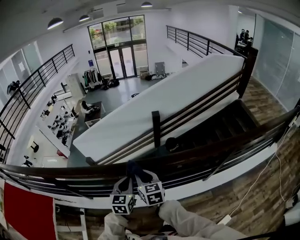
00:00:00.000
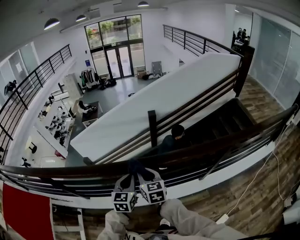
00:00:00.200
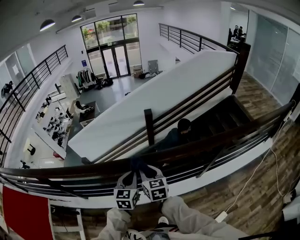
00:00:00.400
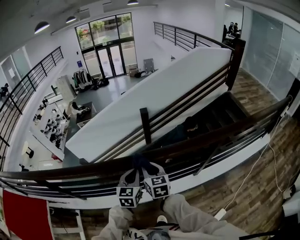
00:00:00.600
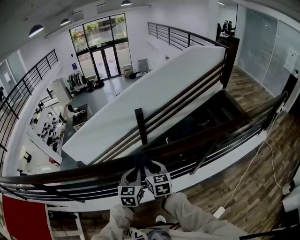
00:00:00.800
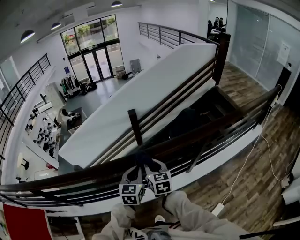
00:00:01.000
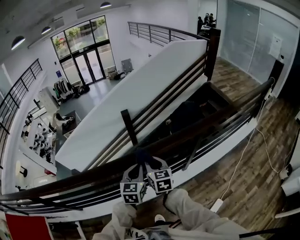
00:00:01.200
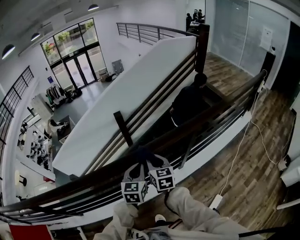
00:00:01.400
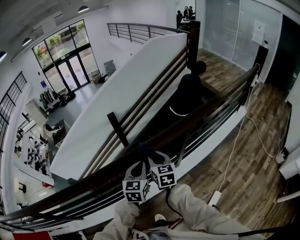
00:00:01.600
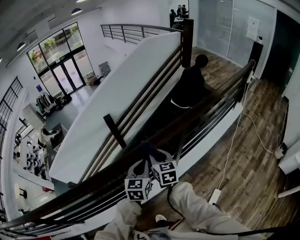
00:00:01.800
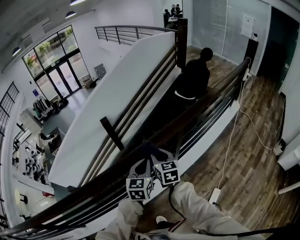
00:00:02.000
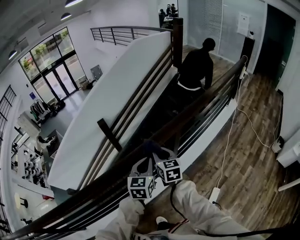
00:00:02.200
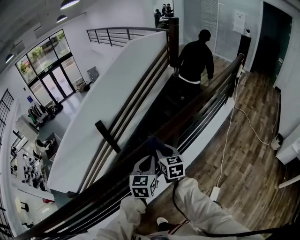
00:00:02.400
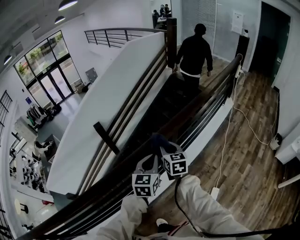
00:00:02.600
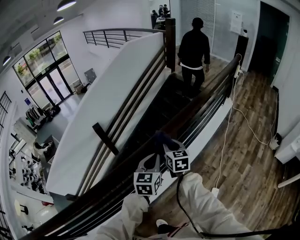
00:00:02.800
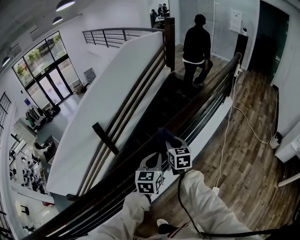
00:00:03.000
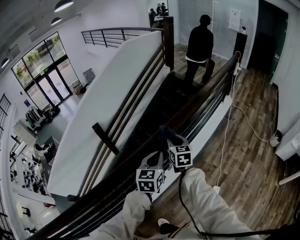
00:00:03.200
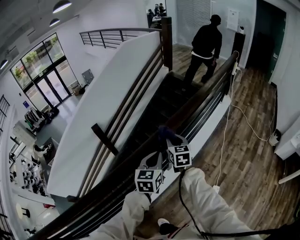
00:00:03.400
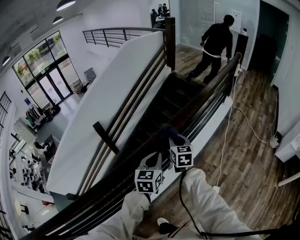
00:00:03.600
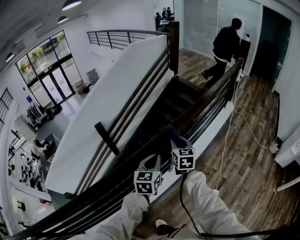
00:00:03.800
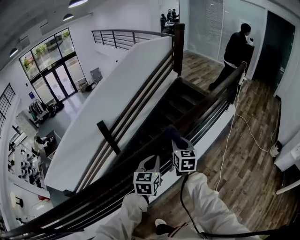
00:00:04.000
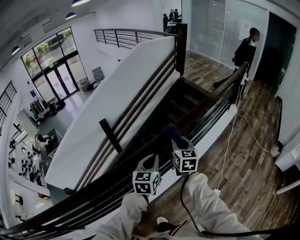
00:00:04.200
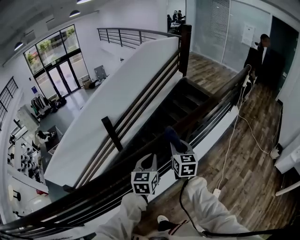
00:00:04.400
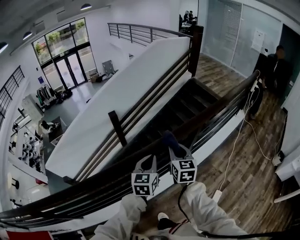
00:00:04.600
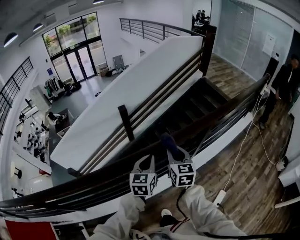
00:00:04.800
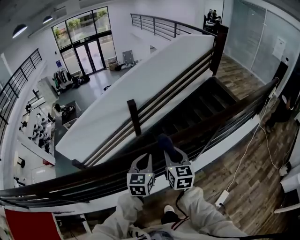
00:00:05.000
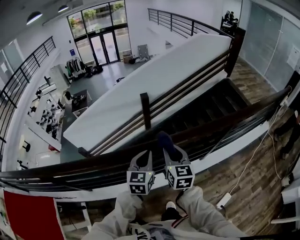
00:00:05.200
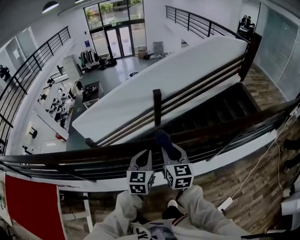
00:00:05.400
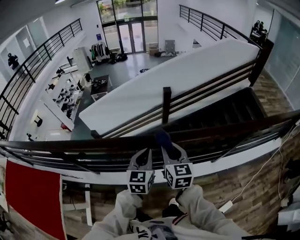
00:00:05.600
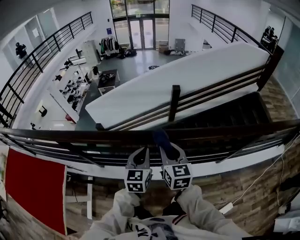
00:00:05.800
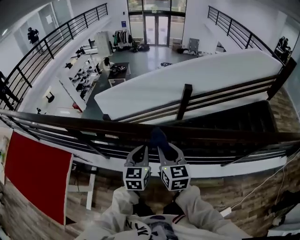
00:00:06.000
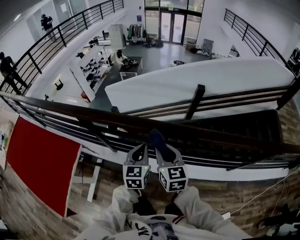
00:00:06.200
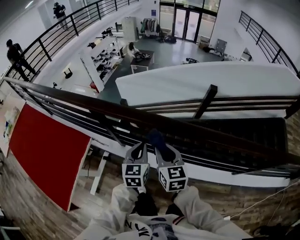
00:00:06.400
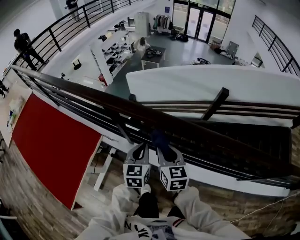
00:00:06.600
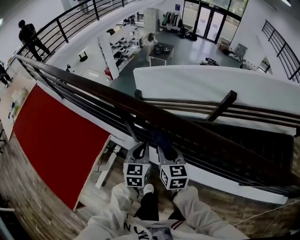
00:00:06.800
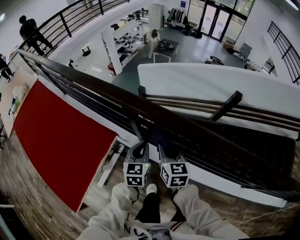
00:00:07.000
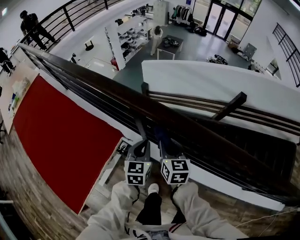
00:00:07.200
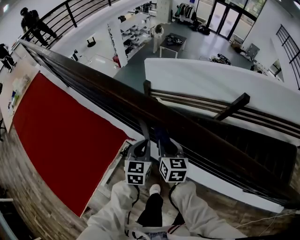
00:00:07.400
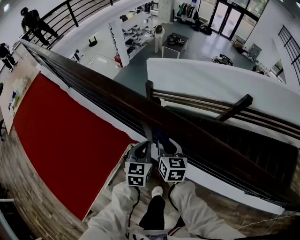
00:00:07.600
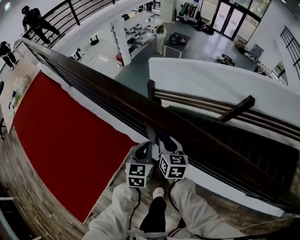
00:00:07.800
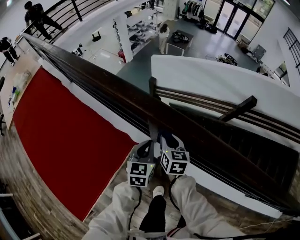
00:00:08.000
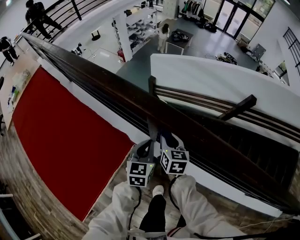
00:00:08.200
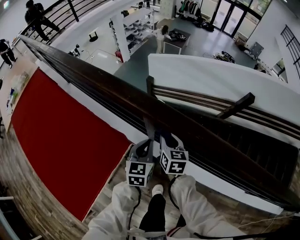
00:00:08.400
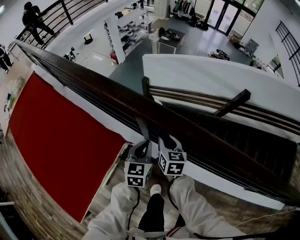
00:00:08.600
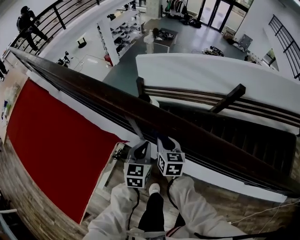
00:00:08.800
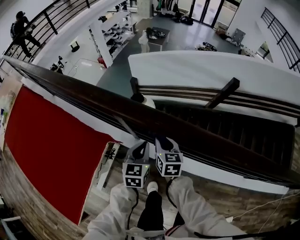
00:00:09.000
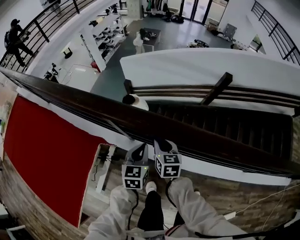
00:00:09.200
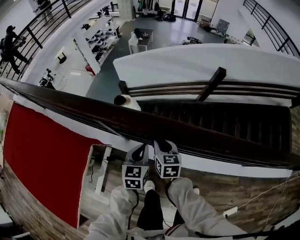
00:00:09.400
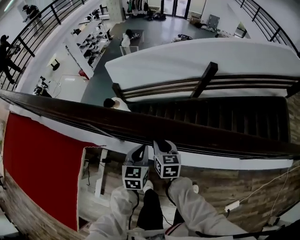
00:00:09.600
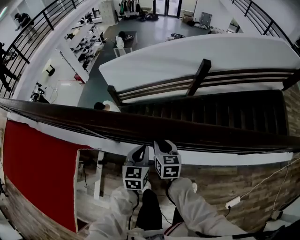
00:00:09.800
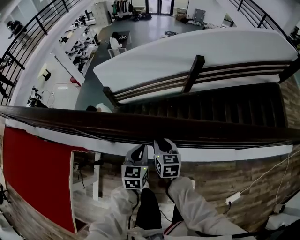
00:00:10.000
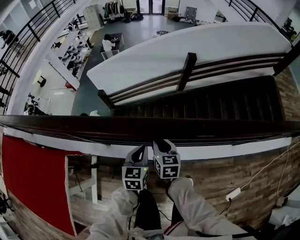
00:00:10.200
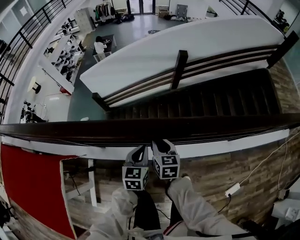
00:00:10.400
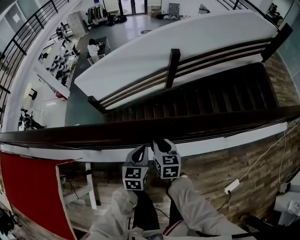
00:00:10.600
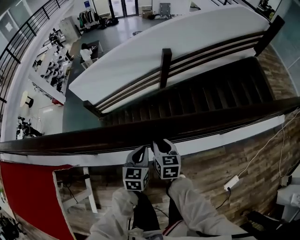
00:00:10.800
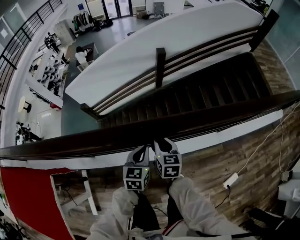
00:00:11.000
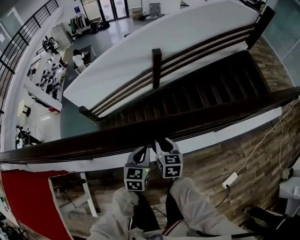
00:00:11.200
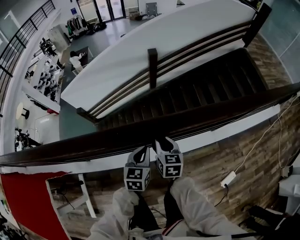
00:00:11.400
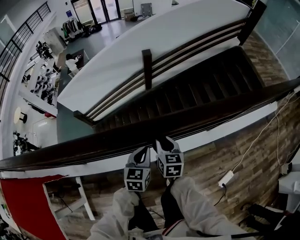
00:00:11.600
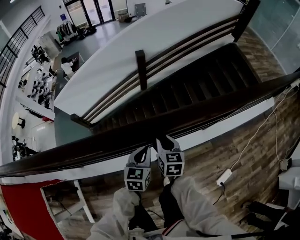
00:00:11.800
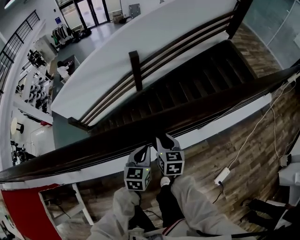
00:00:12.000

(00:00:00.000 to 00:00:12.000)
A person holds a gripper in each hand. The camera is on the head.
00:00:00.000 - 00:00:01.600: The right gripper moves some 35 cm, and rotates approximately 30 degrees. Meanwhile the left gripper shifts by roughly 35 cm, and swivels roughly 30 degrees.
00:00:01.600 - 00:00:03.000: The two grippers go approximately 20 cm to the right and forward.
00:00:03.000 - 00:00:04.400: The right gripper goes about 15 cm backward and to the left, while the left gripper shifts some 15 cm to the left and backward.
00:00:04.400 - 00:00:06.000: Both grippers are carried some 60 cm. The left gripper swivels some 40 degrees, while the right gripper rotates approximately 50 degrees.
00:00:06.000 - 00:00:07.600: The pair of grippers is taken to the left and forward, approximately 40 cm. The grippers both shift downward by some 20 cm. The left gripper turns by about 30 degrees, while the right gripper turns by some 30 degrees.
00:00:07.600 - 00:00:09.000: The grippers both shift to the right by some 5 cm.
00:00:09.000 - 00:00:10.400: Both grippers move to the right, some 30 cm. The left gripper swivels approximately 20 degrees. Meanwhile the right gripper swivels some 20 degrees.
00:00:10.400 - 00:00:12.000: Both grippers move to the right, roughly 35 cm.

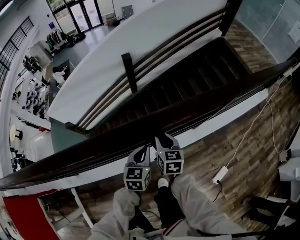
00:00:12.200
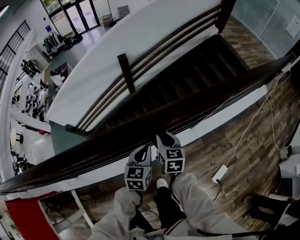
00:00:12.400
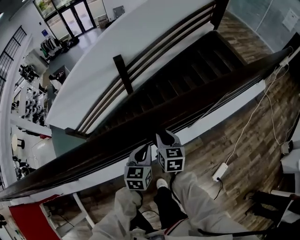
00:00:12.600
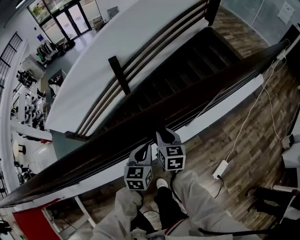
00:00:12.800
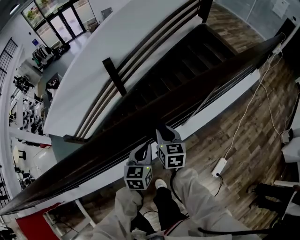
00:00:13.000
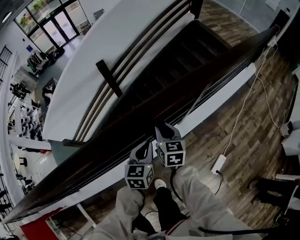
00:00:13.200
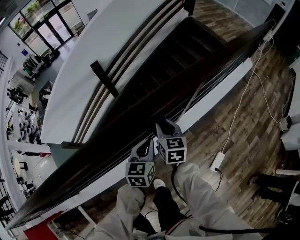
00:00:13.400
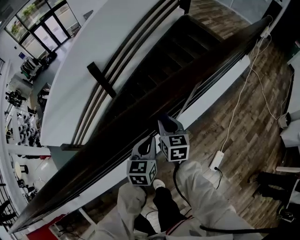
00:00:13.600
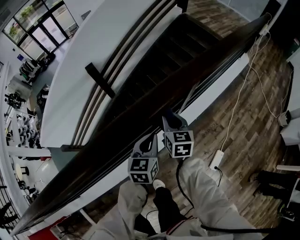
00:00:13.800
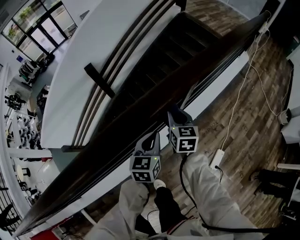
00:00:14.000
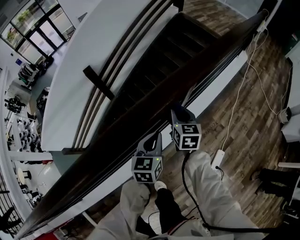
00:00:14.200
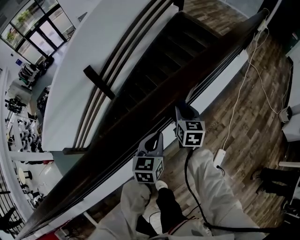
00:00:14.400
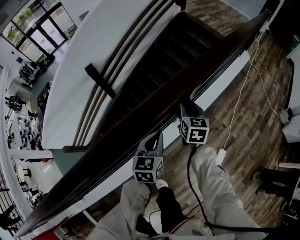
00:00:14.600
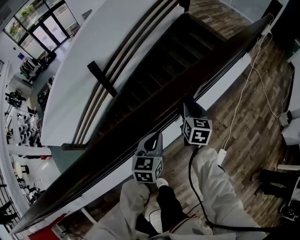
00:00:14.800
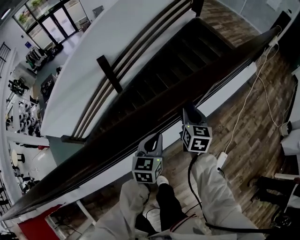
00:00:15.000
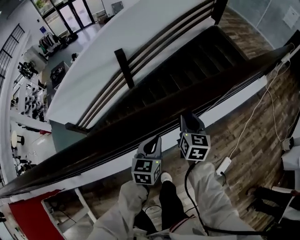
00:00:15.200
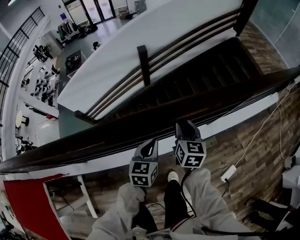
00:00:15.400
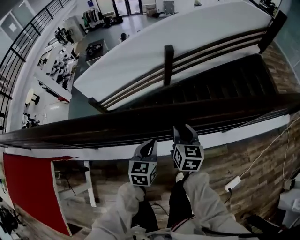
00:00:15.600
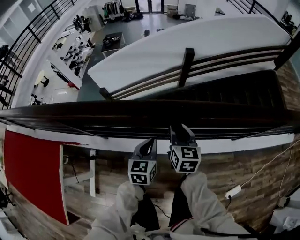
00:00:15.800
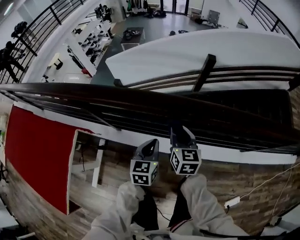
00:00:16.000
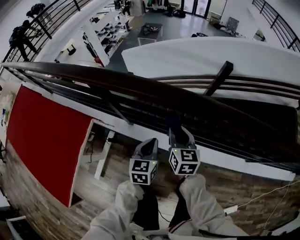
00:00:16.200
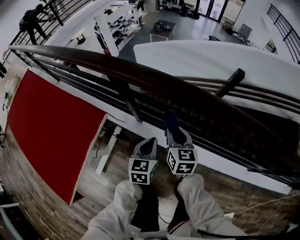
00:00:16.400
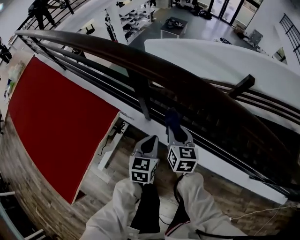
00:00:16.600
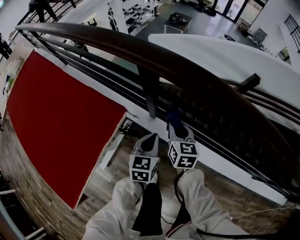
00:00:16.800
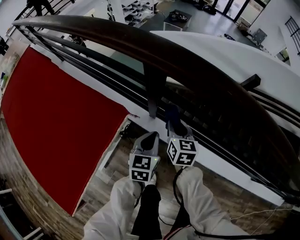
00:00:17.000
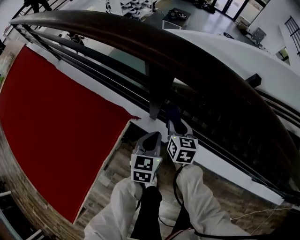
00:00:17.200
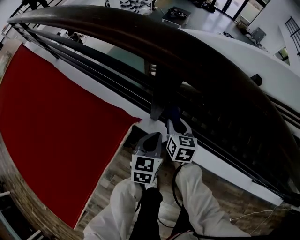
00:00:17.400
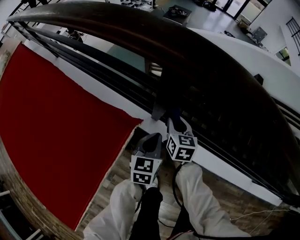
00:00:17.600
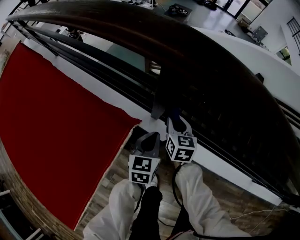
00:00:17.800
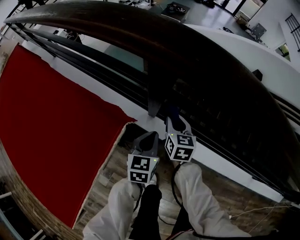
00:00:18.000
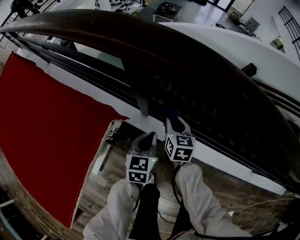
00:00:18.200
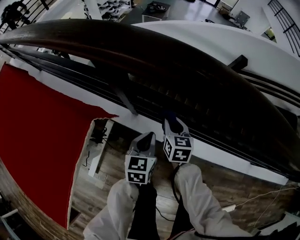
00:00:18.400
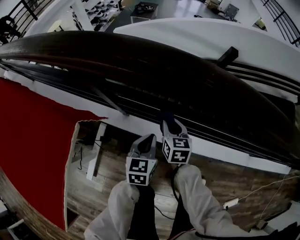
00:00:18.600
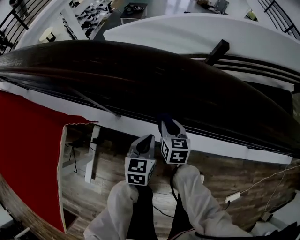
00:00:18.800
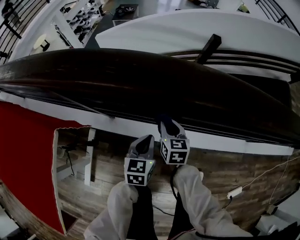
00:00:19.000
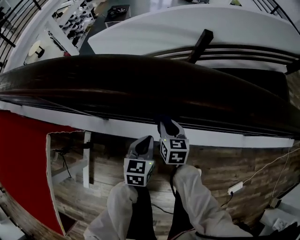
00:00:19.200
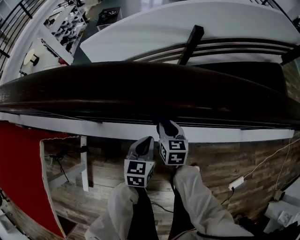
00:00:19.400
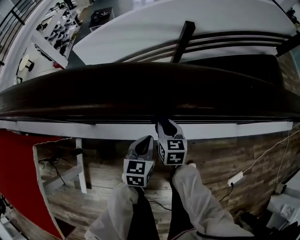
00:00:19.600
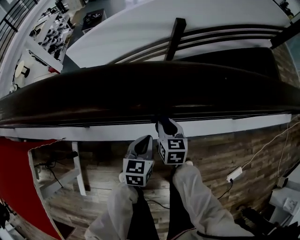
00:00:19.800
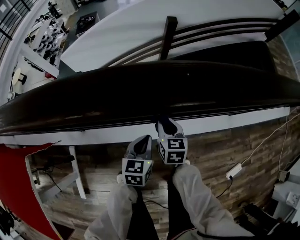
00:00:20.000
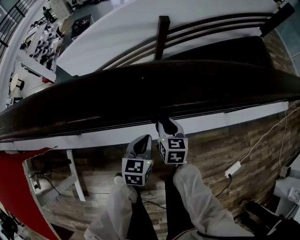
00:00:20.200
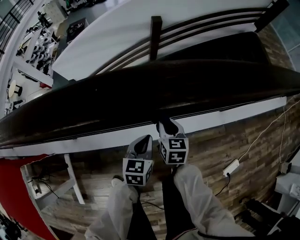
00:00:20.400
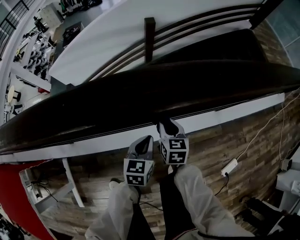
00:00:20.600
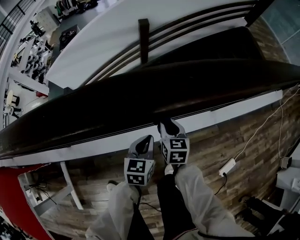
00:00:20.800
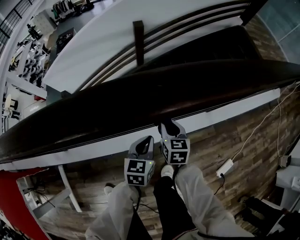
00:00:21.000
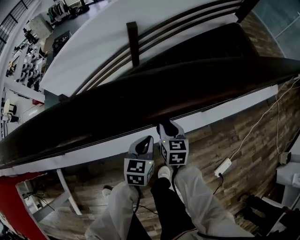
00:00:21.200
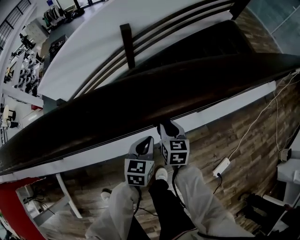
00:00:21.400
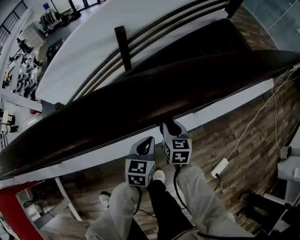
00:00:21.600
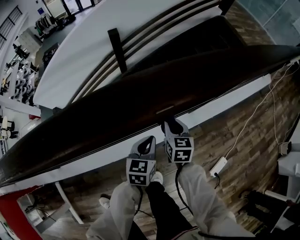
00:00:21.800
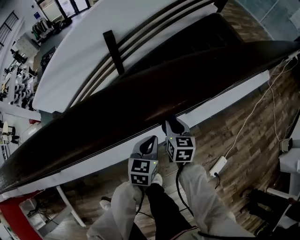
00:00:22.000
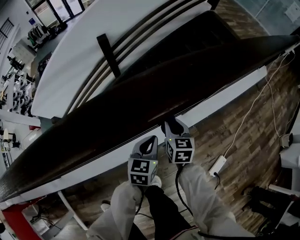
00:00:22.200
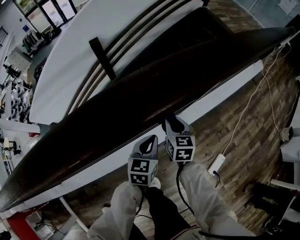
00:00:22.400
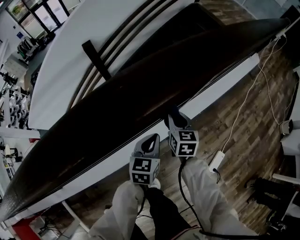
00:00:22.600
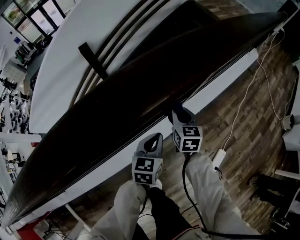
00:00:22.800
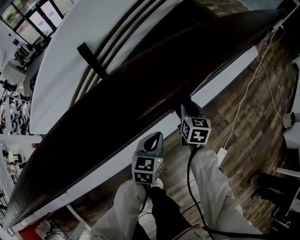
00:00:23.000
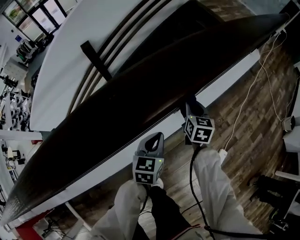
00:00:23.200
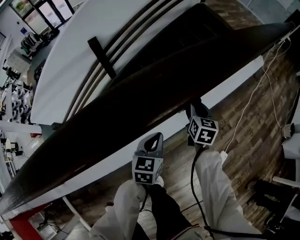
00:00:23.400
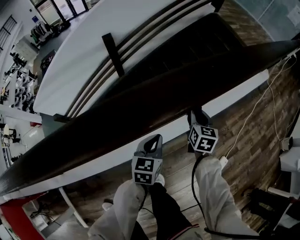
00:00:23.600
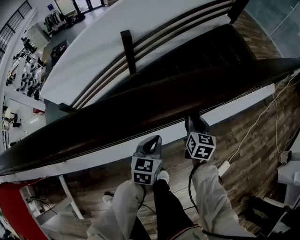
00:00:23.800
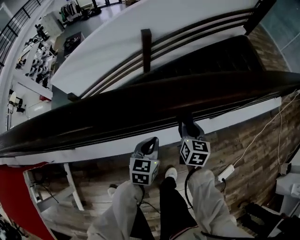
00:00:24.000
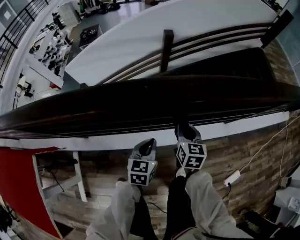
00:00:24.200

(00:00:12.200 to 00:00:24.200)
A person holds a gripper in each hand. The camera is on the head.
00:00:12.200 - 00:00:13.800: The grippers both shift to the right and forward by roughly 30 cm.
00:00:13.800 - 00:00:15.200: Both grippers move to the left and backward, approximately 15 cm.
00:00:15.200 - 00:00:16.600: Both grippers are carried about 80 cm. The left gripper swivels about 50 degrees; the right gripper changes its angle by approximately 60 degrees.
00:00:16.600 - 00:00:18.200: The left gripper shifts roughly 10 cm downward; the right gripper moves downward and forward, approximately 15 cm.
00:00:18.200 - 00:00:19.800: The two grippers travel together, some 40 cm. The left gripper swivels some 30 degrees; the right gripper turns by approximately 20 degrees.
00:00:19.800 - 00:00:21.200: Both grippers move to the right, about 30 cm.
00:00:21.200 - 00:00:22.600: The two grippers go approximately 30 cm to the right and forward.
00:00:22.600 - 00:00:24.200: The pair of grippers is taken approximately 50 cm. The left gripper rotates roughly 30 degrees; the right gripper turns by some 20 degrees.
